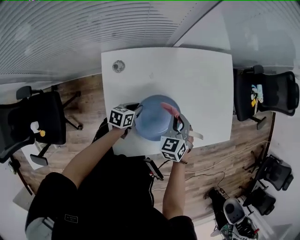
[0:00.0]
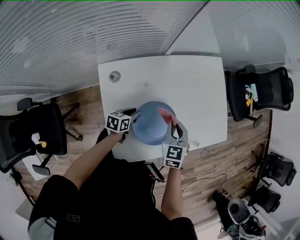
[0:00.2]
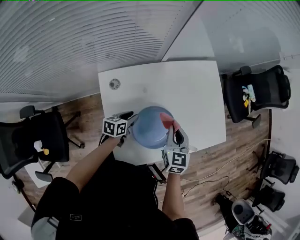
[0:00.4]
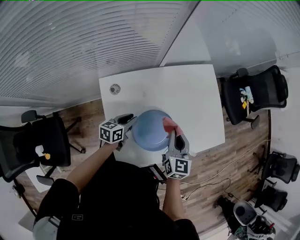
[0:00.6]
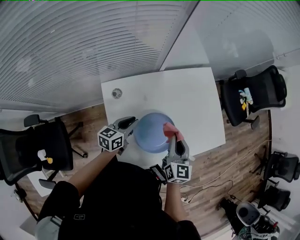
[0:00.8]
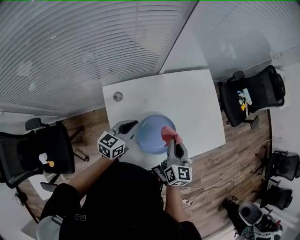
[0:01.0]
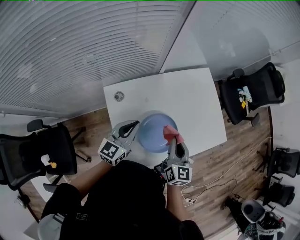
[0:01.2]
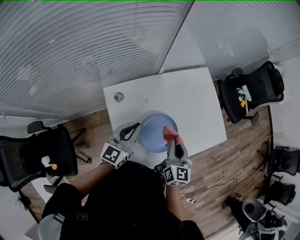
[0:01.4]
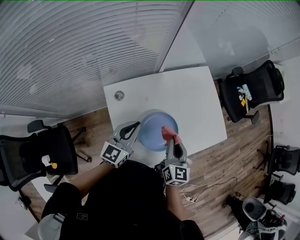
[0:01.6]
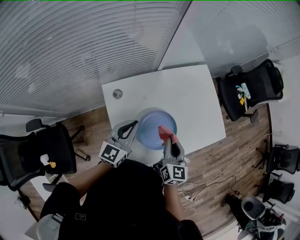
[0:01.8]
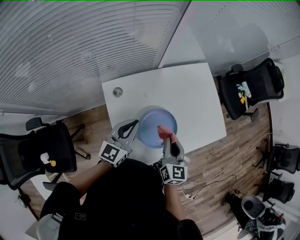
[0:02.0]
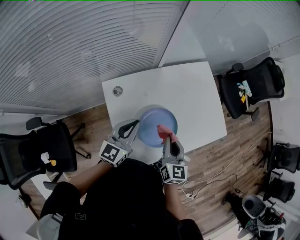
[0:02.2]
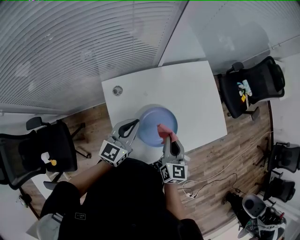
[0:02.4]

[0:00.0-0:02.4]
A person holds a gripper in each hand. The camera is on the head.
0:00.0 to 0:01.2: The right gripper heads upward, covering some 15 cm, and twists some 50 degrees clockwise, seen from behind, while the left gripper travels upward by some 25 cm, and angles its fingers upward, by some 30 degrees.
0:01.2 to 0:02.4: The grippers stay close to where they were, moving slightly.

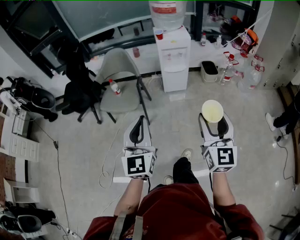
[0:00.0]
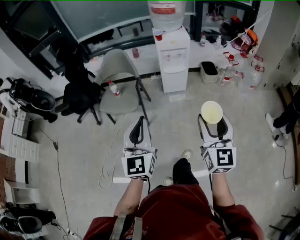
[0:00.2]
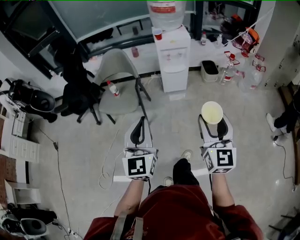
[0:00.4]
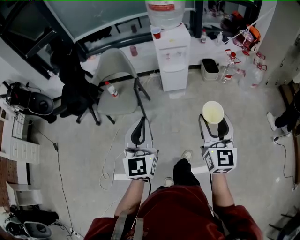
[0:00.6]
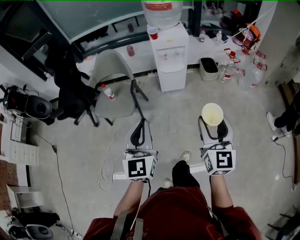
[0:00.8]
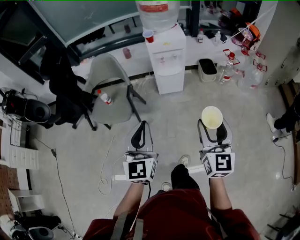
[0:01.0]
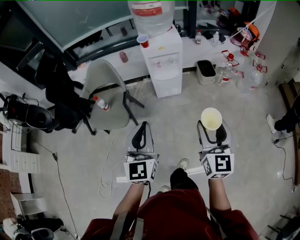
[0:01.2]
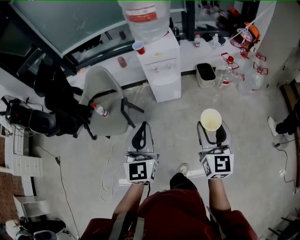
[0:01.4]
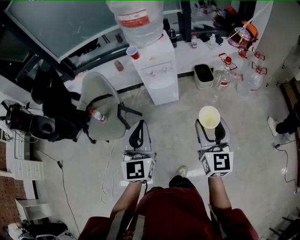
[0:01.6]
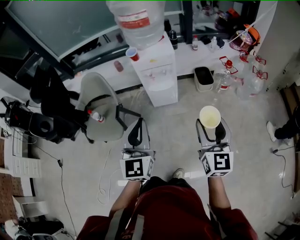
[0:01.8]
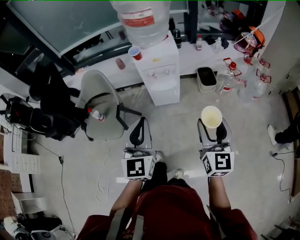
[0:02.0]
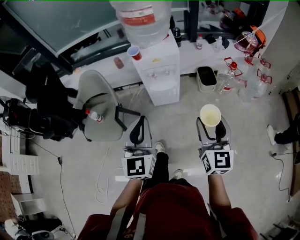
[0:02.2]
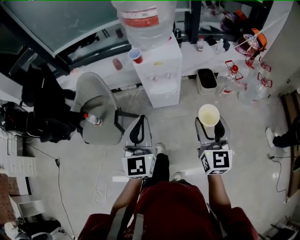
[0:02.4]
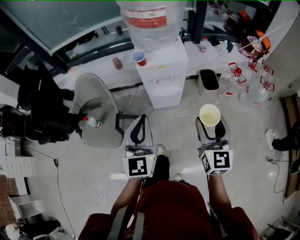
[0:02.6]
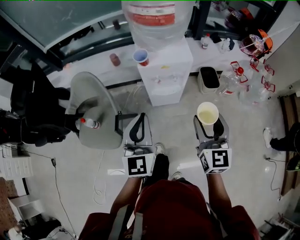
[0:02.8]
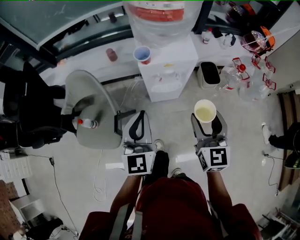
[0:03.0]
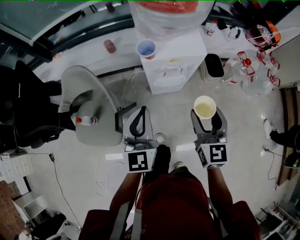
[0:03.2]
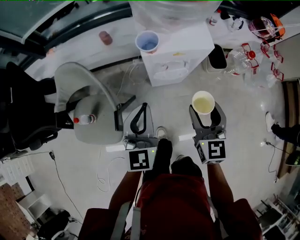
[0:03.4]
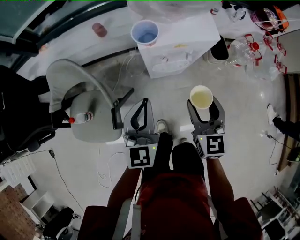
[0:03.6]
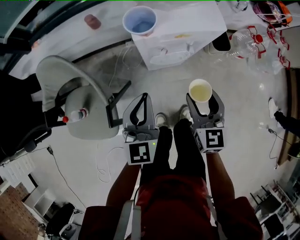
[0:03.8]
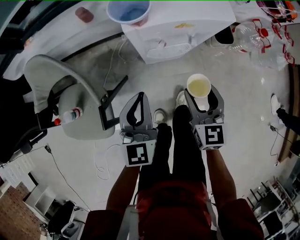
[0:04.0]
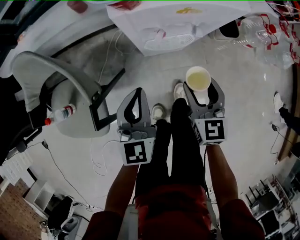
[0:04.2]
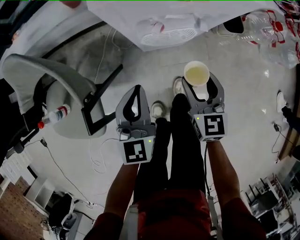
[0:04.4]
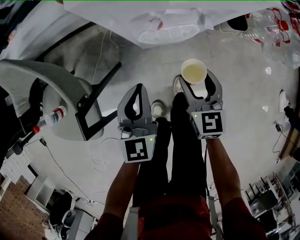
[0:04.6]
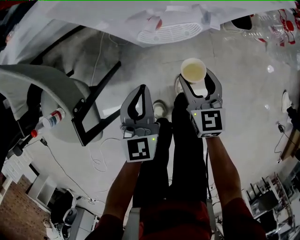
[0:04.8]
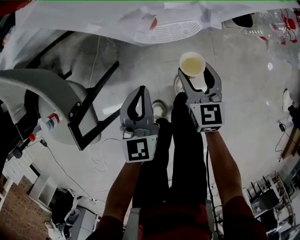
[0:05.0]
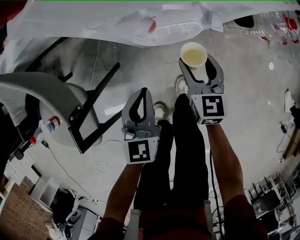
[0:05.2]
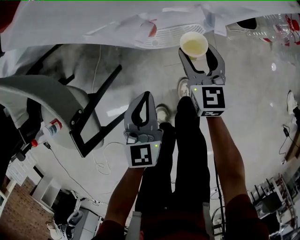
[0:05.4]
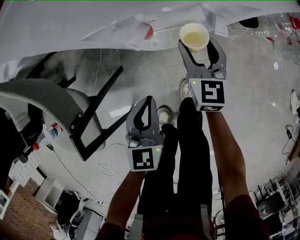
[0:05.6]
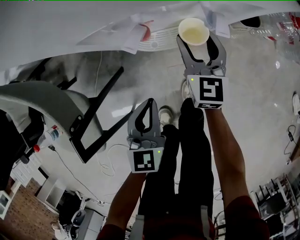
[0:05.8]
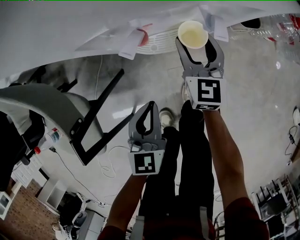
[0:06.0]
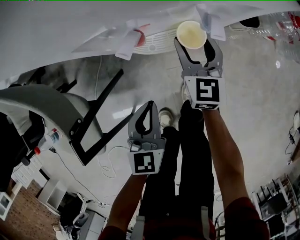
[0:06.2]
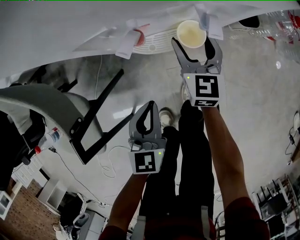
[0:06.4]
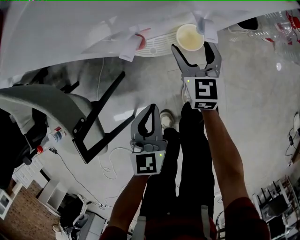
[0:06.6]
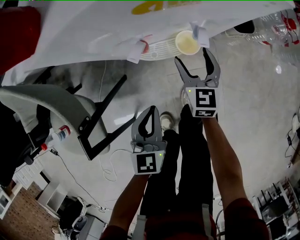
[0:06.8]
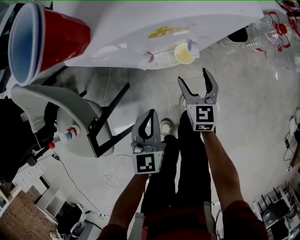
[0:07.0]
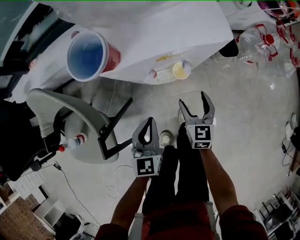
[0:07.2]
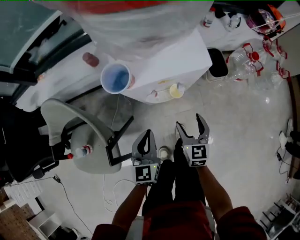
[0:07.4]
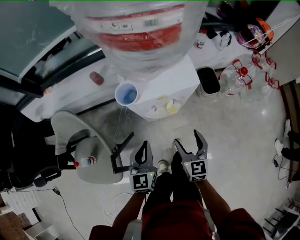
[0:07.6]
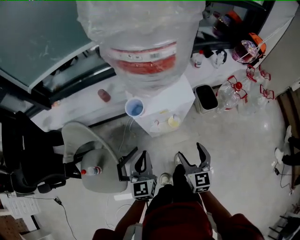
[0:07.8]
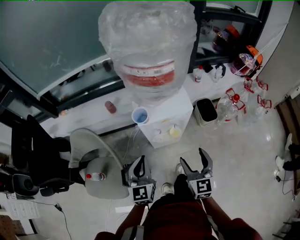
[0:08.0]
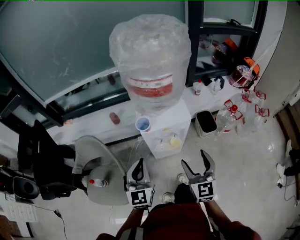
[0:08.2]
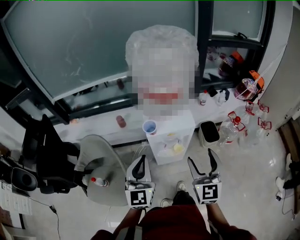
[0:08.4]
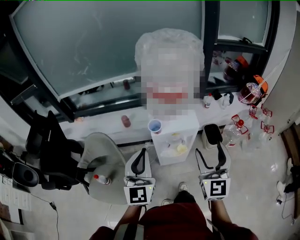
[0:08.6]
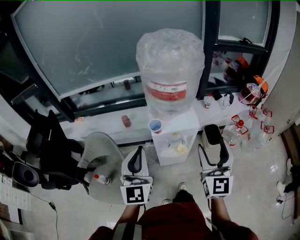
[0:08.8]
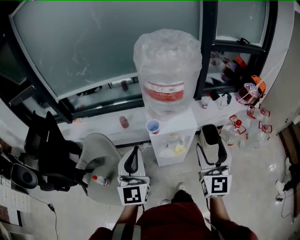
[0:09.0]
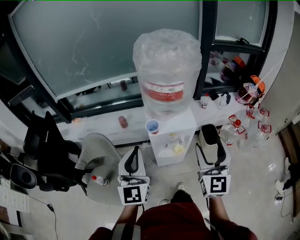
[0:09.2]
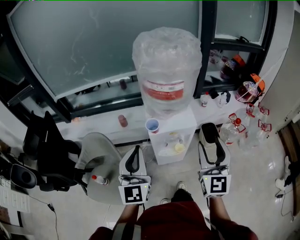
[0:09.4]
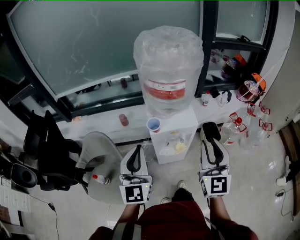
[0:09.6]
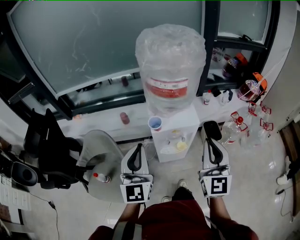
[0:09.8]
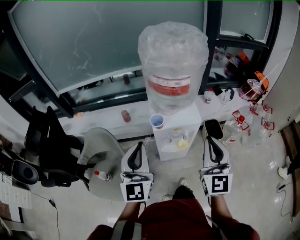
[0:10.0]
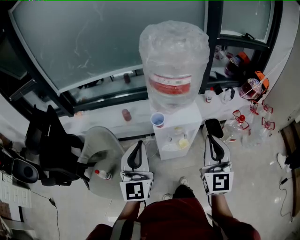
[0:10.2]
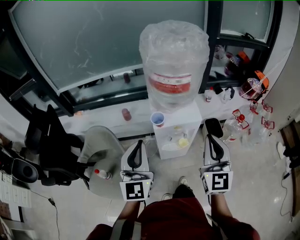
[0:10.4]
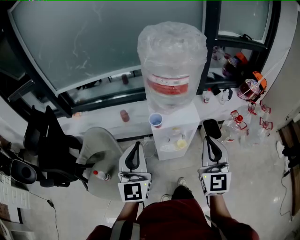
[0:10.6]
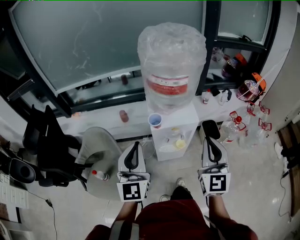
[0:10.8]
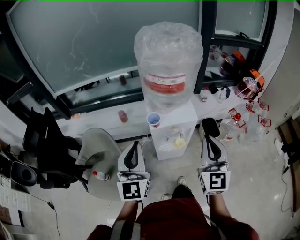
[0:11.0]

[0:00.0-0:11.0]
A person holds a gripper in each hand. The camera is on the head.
0:00.0 to 0:01.6: Both grippers move forward and to the right, roughly 30 cm.
0:01.6 to 0:03.2: The right gripper shifts roughly 35 cm forward and to the left. The left gripper is displaced forward and downward by approximately 30 cm.
0:03.2 to 0:04.8: Both grippers travel together downward, about 40 cm.
0:04.8 to 0:06.2: The left gripper goes some 5 cm downward. The right gripper is displaced forward by roughly 15 cm.
0:06.2 to 0:07.8: The left gripper heads upward, covering approximately 30 cm. The right gripper heads upward and backward, covering some 35 cm.
0:07.8 to 0:09.4: The grippers both shift upward by approximately 30 cm. The right gripper turns by roughly 30 degrees. The left gripper swivels roughly 30 degrees.
0:09.4 to 0:11.0: The right gripper closes up.

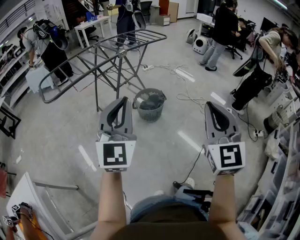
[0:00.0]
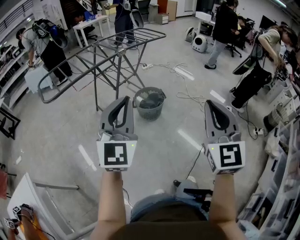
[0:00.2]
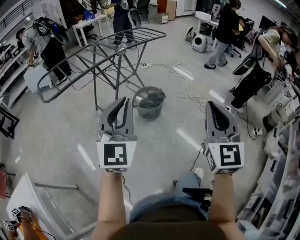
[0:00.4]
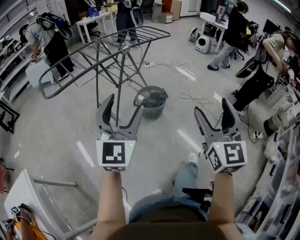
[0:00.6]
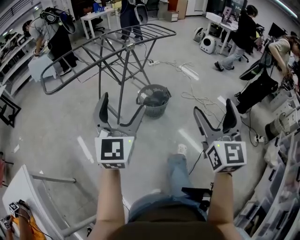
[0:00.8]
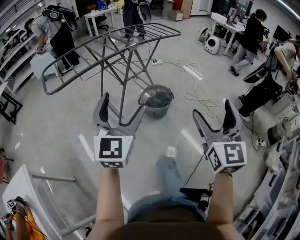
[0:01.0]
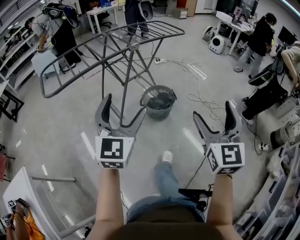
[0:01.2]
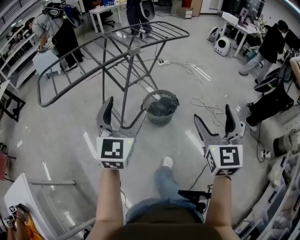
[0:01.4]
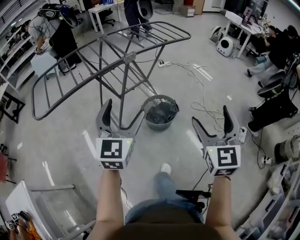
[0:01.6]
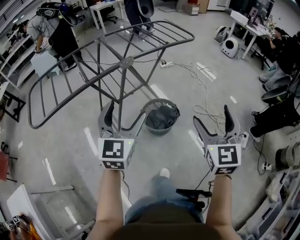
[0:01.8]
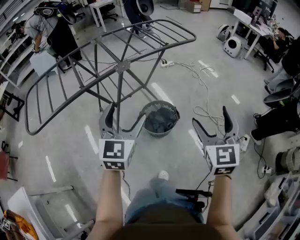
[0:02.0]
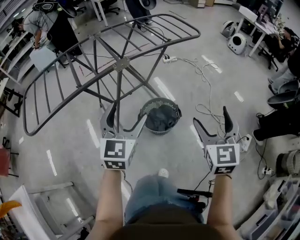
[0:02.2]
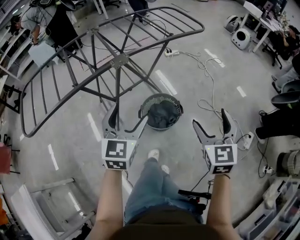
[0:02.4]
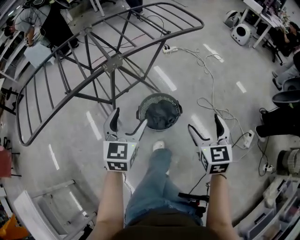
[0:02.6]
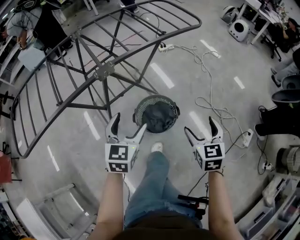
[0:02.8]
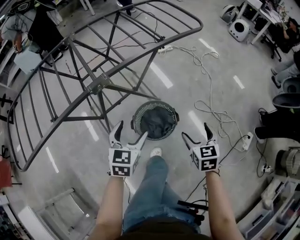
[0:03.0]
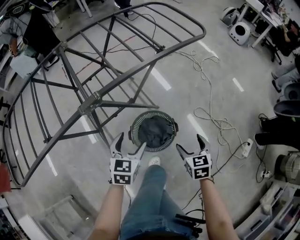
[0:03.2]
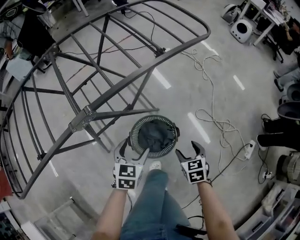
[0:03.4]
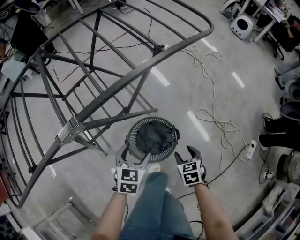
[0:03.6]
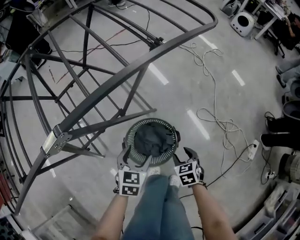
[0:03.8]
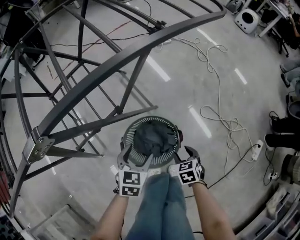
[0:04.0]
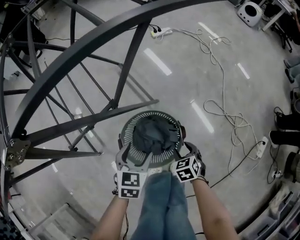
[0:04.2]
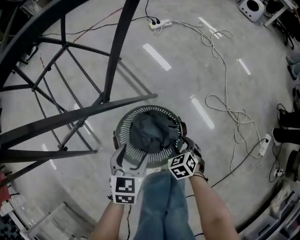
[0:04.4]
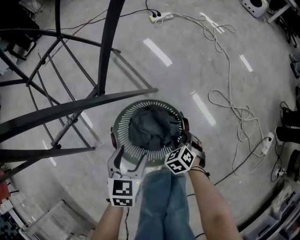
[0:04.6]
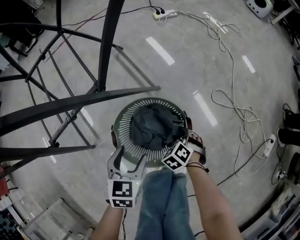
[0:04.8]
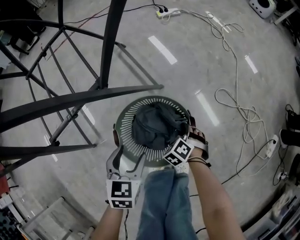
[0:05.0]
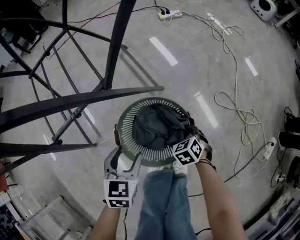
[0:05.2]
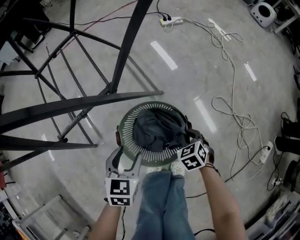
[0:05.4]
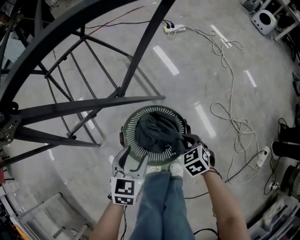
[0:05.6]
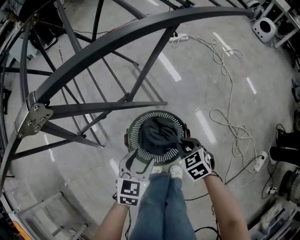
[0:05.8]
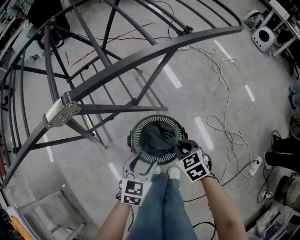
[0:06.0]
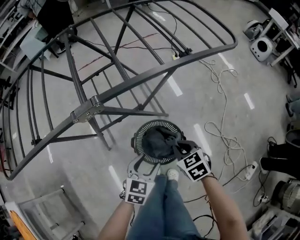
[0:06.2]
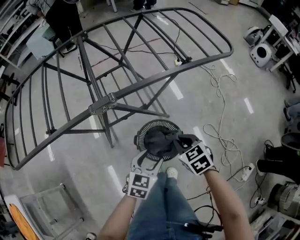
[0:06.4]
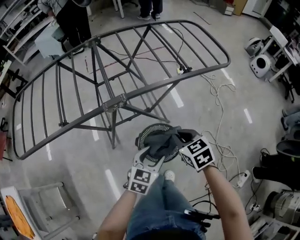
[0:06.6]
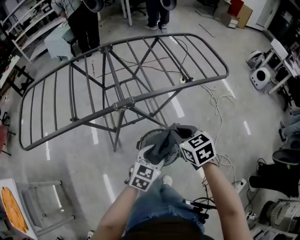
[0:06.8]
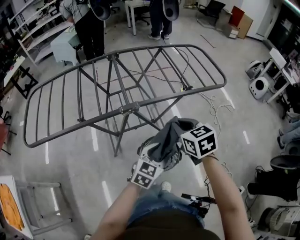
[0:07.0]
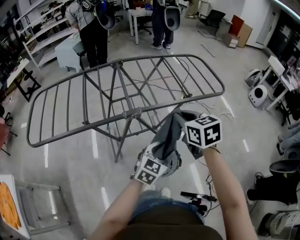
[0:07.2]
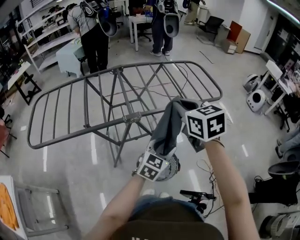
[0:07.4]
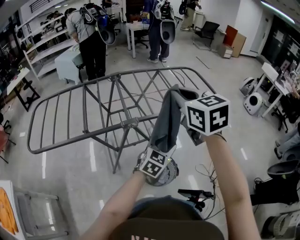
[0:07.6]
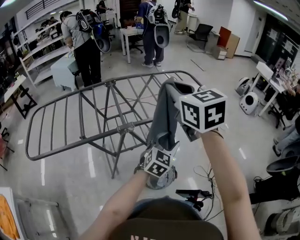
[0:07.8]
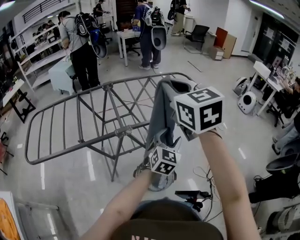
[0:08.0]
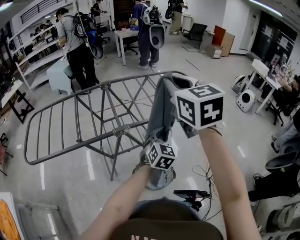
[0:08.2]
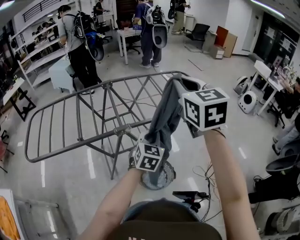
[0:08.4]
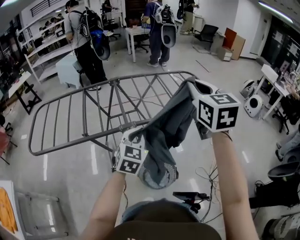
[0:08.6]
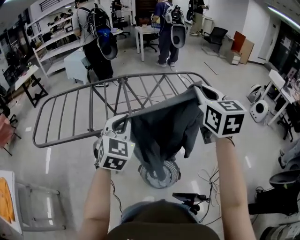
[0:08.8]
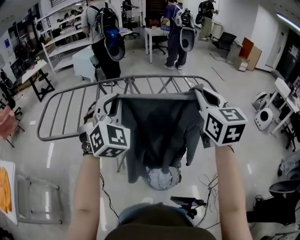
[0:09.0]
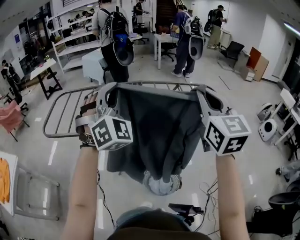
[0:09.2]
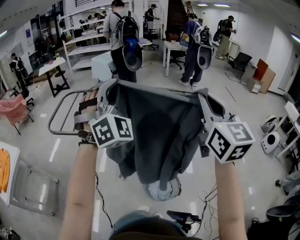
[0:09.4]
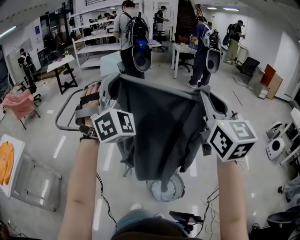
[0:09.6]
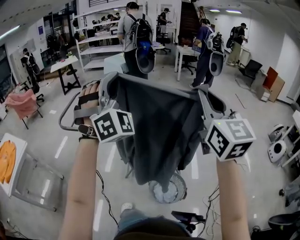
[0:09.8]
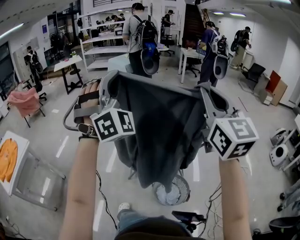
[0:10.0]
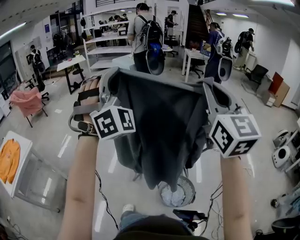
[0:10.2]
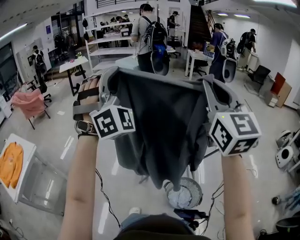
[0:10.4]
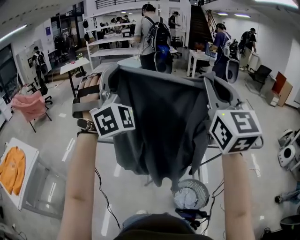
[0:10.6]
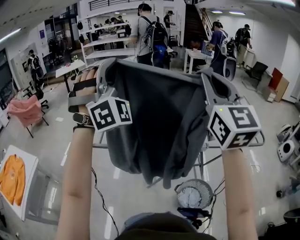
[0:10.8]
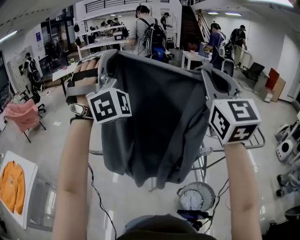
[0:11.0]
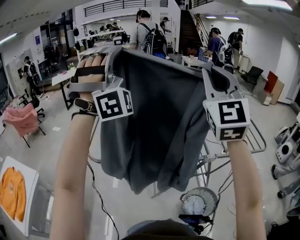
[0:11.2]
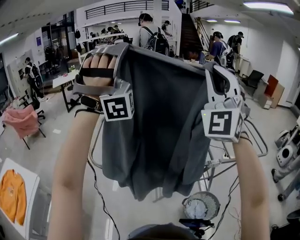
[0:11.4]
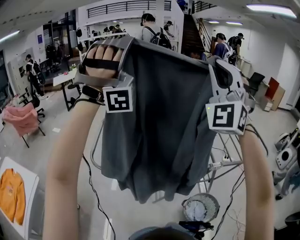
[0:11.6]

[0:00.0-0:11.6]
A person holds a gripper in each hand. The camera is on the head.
0:00.0 to 0:01.4: The right gripper moves forward, about 20 cm, and opens its fingers. The left gripper shifts approximately 20 cm forward and downward, and opens up.
0:01.4 to 0:02.8: The grippers both shift forward and downward by some 40 cm. The right gripper swivels roughly 30 degrees. Meanwhile the left gripper swivels roughly 30 degrees.
0:02.8 to 0:04.4: The grippers both shift downward by approximately 40 cm. The left gripper changes its angle by roughly 20 degrees, while the right gripper tips its fingers downward by some 30 degrees, and closes its fingers.
0:04.4 to 0:05.8: The right gripper is displaced upward by some 15 cm, and closes its fingers; the left gripper goes roughly 5 cm upward.
0:05.8 to 0:07.2: The left gripper goes roughly 35 cm upward. Meanwhile the right gripper shifts roughly 50 cm upward, and swivels about 30 degrees.
0:07.2 to 0:08.8: The right gripper goes approximately 20 cm upward, and turns by approximately 30 degrees. Meanwhile the left gripper is displaced upward and to the left by roughly 25 cm, changes its angle by some 40 degrees, and closes.
0:08.8 to 0:10.2: The left gripper travels upward by about 25 cm, and points its fingers about 30 degrees further upward; the right gripper shifts by some 25 cm, and turns by approximately 30 degrees.
0:10.2 to 0:11.6: The left gripper goes roughly 35 cm to the left, forward and upward, and rotates approximately 40 degrees; the right gripper goes roughly 35 cm to the left and forward, and rolls counterclockwise, seen from behind, by some 60 degrees.
